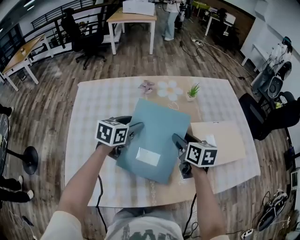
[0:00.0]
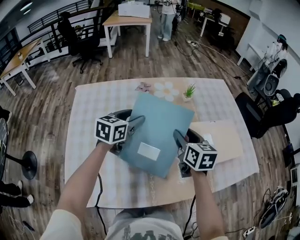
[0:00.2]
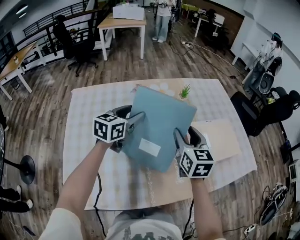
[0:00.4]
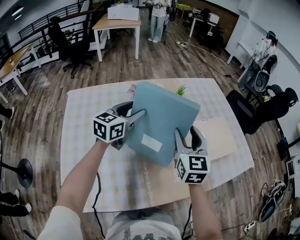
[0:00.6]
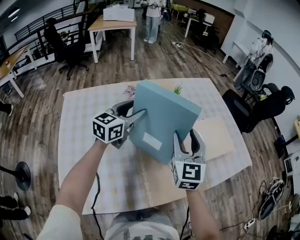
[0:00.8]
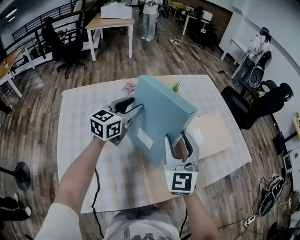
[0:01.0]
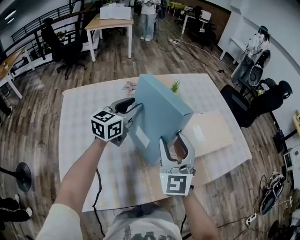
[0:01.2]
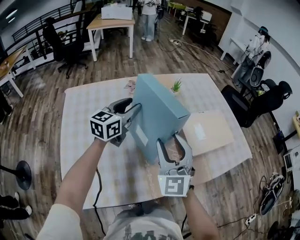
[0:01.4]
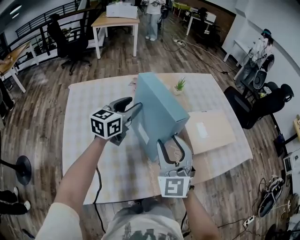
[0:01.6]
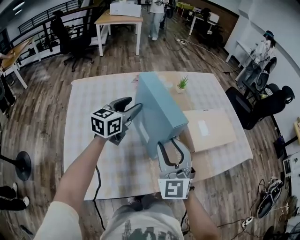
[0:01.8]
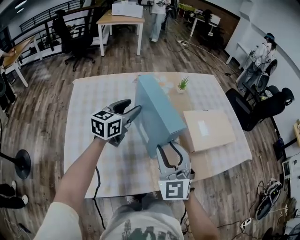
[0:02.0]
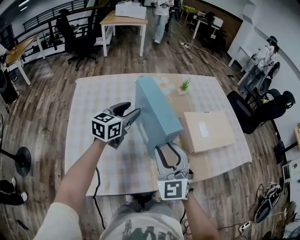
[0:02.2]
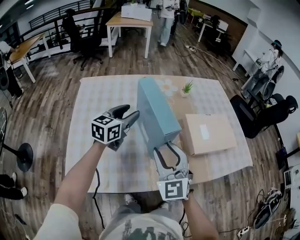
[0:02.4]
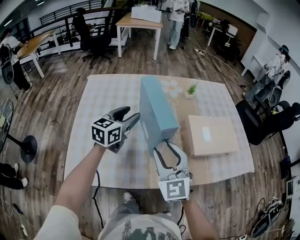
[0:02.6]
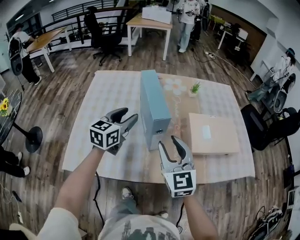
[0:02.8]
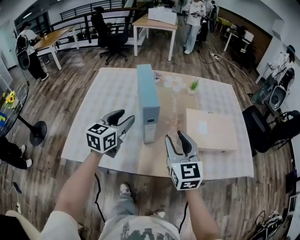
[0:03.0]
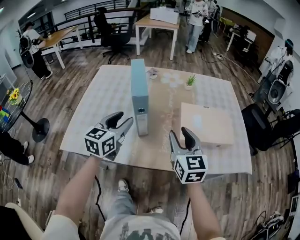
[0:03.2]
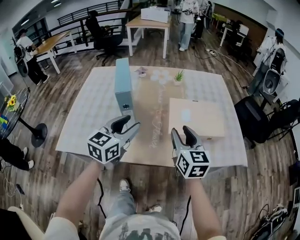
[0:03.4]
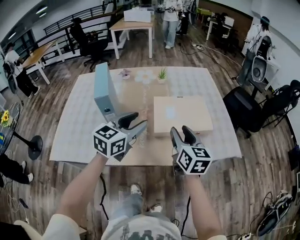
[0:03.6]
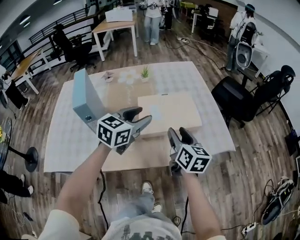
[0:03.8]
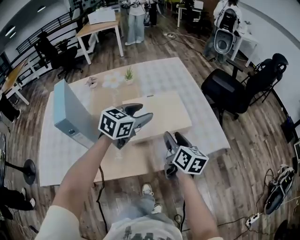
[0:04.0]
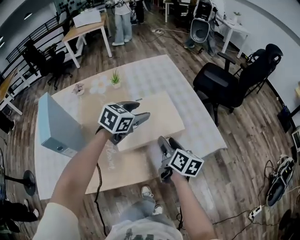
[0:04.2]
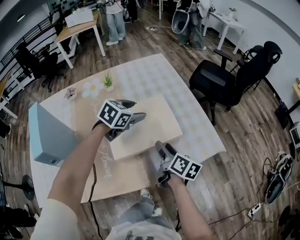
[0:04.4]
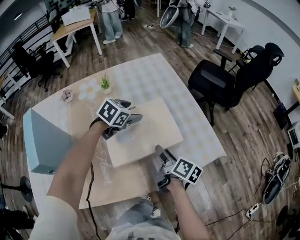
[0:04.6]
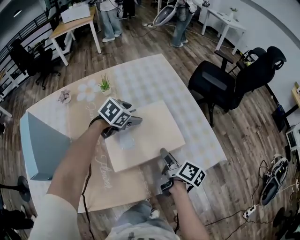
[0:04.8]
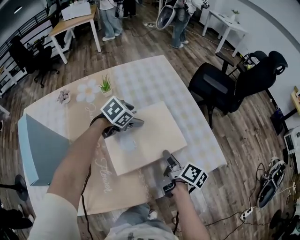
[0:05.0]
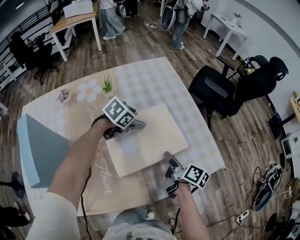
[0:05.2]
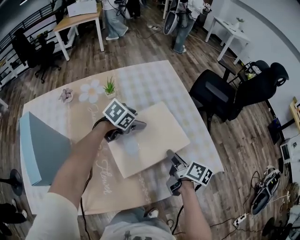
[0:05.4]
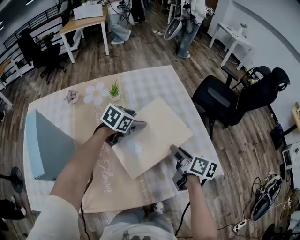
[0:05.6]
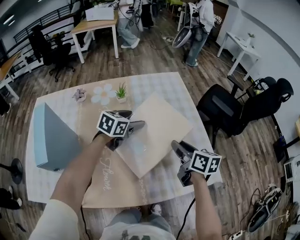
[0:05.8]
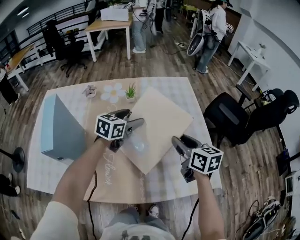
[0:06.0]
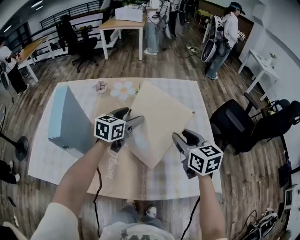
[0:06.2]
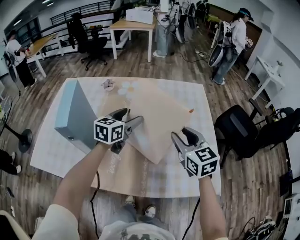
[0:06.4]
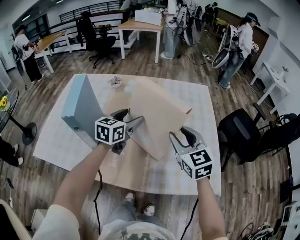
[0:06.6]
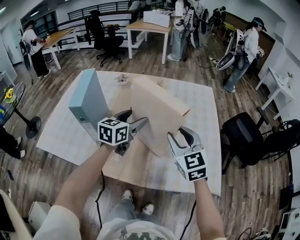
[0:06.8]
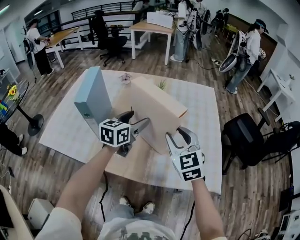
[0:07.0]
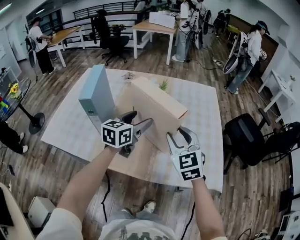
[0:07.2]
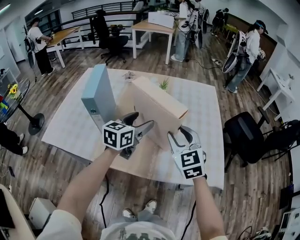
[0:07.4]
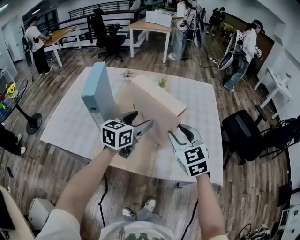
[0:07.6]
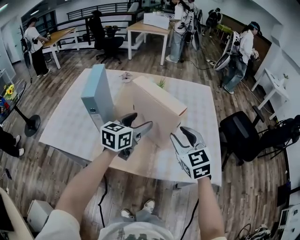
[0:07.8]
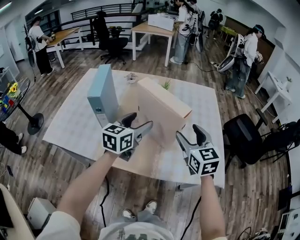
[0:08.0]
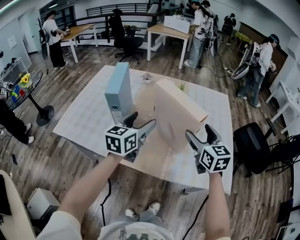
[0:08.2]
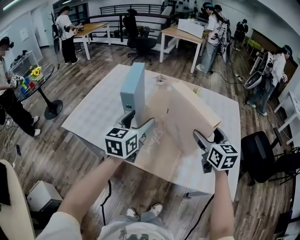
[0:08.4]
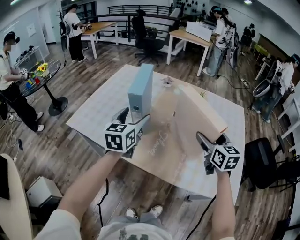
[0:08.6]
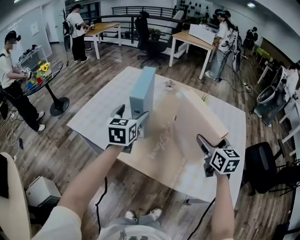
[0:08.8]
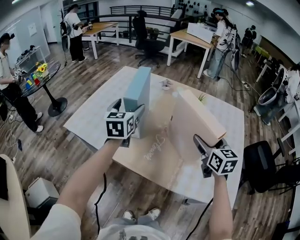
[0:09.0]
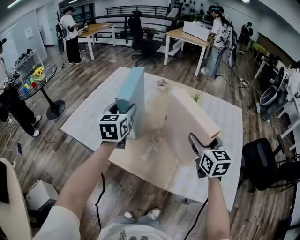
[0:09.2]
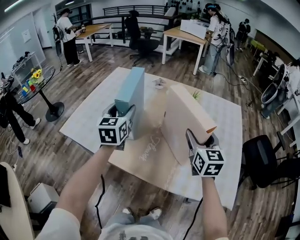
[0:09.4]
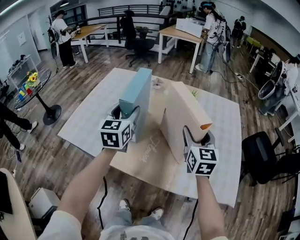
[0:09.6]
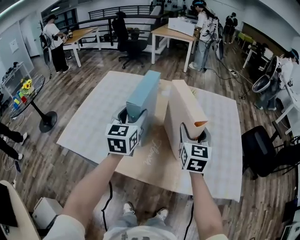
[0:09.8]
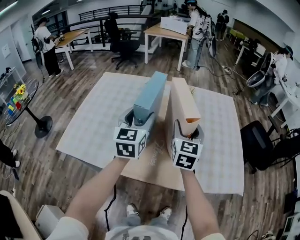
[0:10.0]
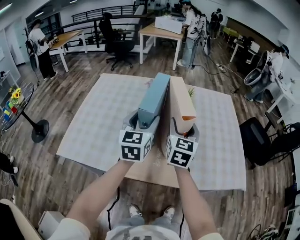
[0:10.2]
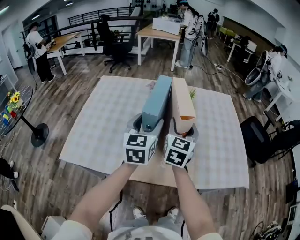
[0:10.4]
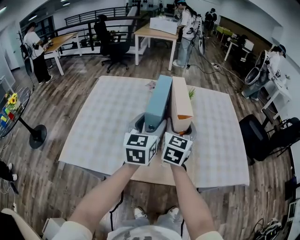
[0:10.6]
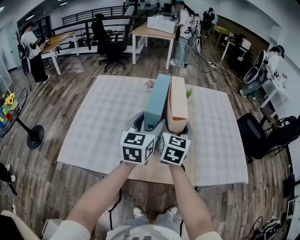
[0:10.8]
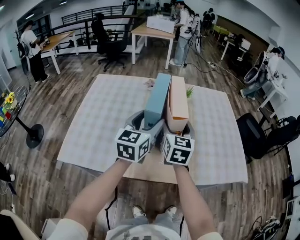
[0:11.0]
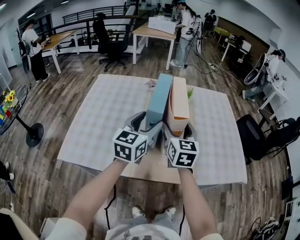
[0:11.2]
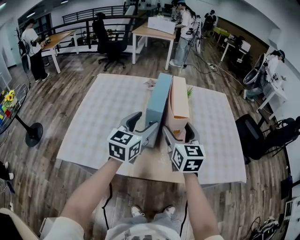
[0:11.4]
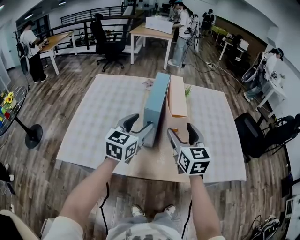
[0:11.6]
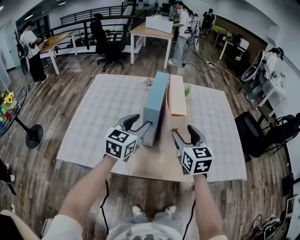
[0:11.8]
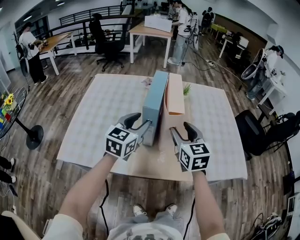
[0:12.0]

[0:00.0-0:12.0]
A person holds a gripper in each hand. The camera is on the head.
0.0 to 1.6 s: The right gripper heads backward and upward, covering some 20 cm, and rolls counterclockwise, seen from behind, by roughly 50 degrees. Meanwhile the left gripper goes roughly 10 cm upward, and rotates some 30 degrees.
1.6 to 3.0 s: The right gripper goes approximately 10 cm to the right, and rotates approximately 30 degrees. Meanwhile the left gripper travels backward by some 15 cm, and changes its angle by approximately 20 degrees.
3.0 to 4.4 s: The right gripper shifts by some 35 cm, and rotates around the line of its fingers by approximately 70 degrees, clockwise from behind. Meanwhile the left gripper changes place by roughly 50 cm, and changes its angle by about 50 degrees.
4.4 to 6.0 s: The left gripper travels downward and back again, some 5 cm each way, and rotates some 30 degrees. Meanwhile the right gripper shifts by some 15 cm, and turns by approximately 40 degrees.
6.0 to 7.6 s: The left gripper travels backward by some 20 cm, and turns by about 20 degrees, while the right gripper moves to the left, backward and upward, some 15 cm, and twists roughly 50 degrees counterclockwise, seen from behind.
7.6 to 9.0 s: The left gripper heads to the left, covering about 25 cm, and turns by approximately 40 degrees; the right gripper travels forward by some 5 cm, rotates about 20 degrees, and opens.
9.0 to 10.4 s: The right gripper shifts by roughly 15 cm, and swivels some 40 degrees. The left gripper moves approximately 5 cm, and rotates roughly 20 degrees.
10.4 to 12.0 s: The right gripper heads backward, covering roughly 5 cm, and turns by approximately 20 degrees.

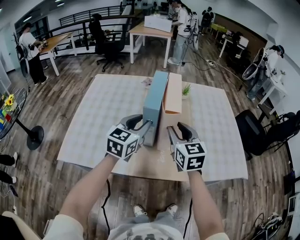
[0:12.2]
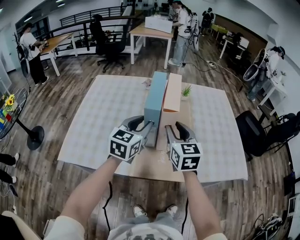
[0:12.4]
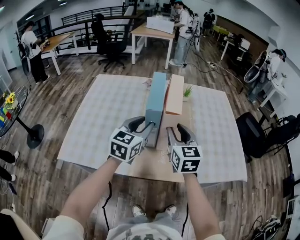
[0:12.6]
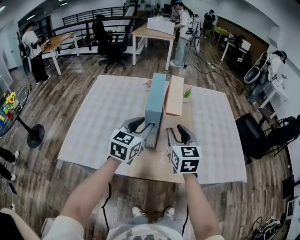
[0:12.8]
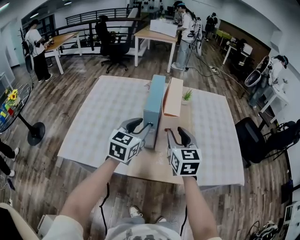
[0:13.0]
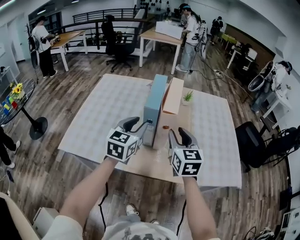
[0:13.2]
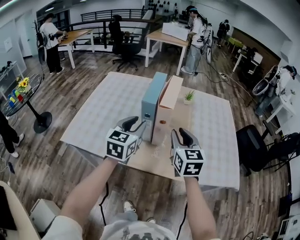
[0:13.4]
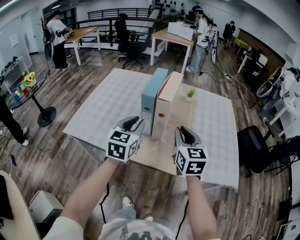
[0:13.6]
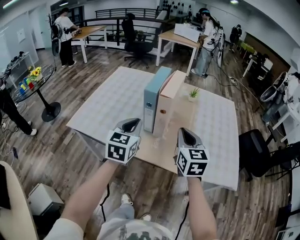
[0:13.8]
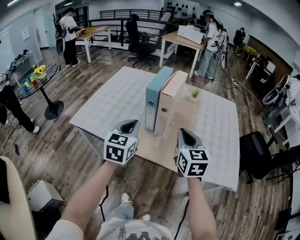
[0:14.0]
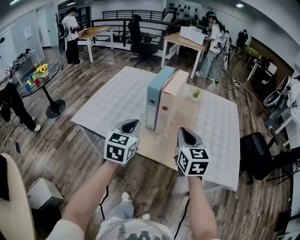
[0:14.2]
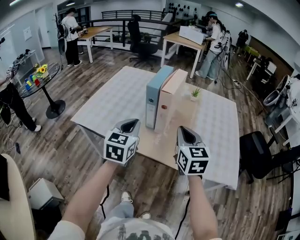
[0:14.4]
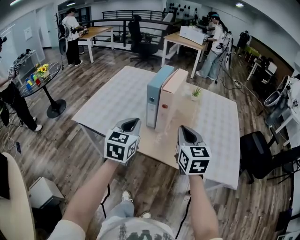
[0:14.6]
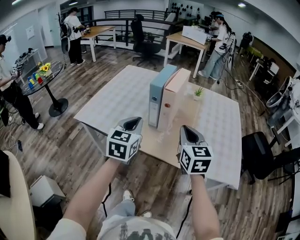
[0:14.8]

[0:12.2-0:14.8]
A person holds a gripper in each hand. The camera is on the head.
12.2 to 13.4 s: The left gripper goes approximately 5 cm backward. Meanwhile the right gripper ends up approximately 5 cm from where it was.
13.4 to 14.8 s: Both grippers travel together backward, approximately 10 cm. The left gripper closes up.

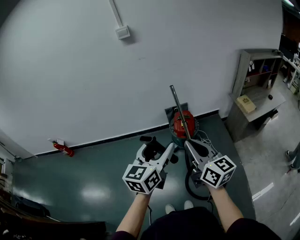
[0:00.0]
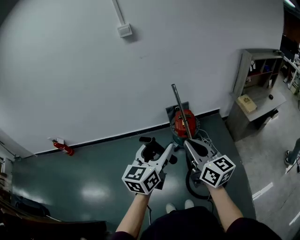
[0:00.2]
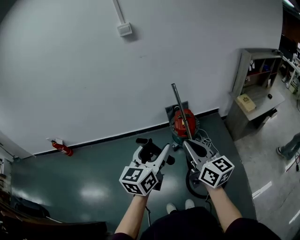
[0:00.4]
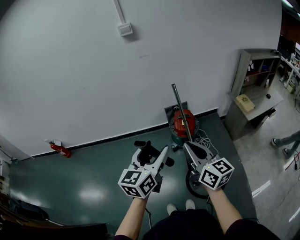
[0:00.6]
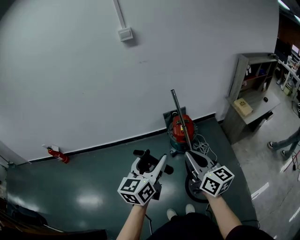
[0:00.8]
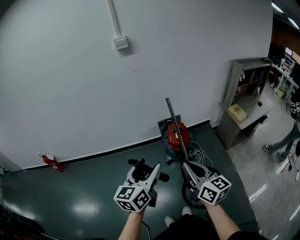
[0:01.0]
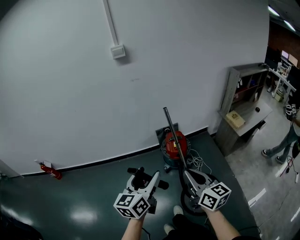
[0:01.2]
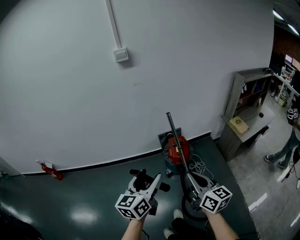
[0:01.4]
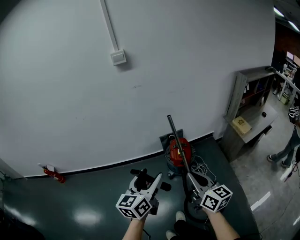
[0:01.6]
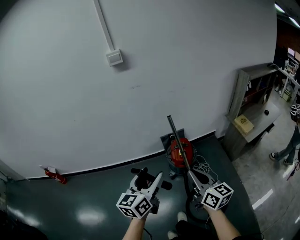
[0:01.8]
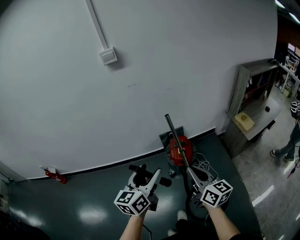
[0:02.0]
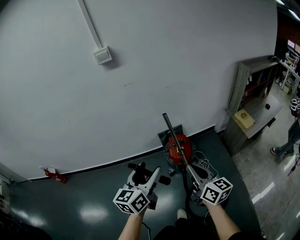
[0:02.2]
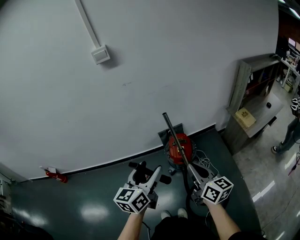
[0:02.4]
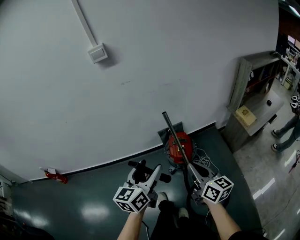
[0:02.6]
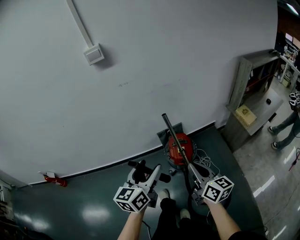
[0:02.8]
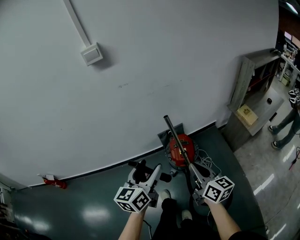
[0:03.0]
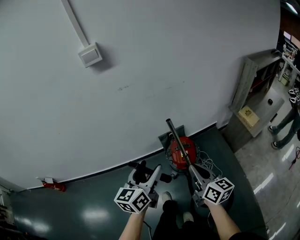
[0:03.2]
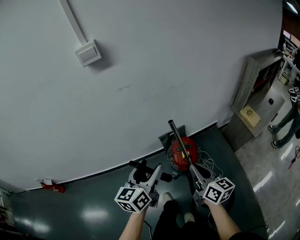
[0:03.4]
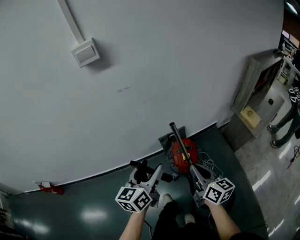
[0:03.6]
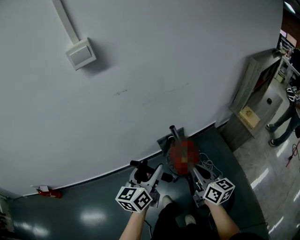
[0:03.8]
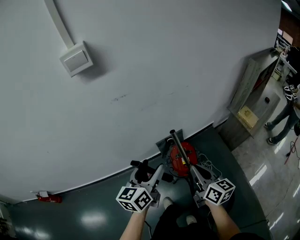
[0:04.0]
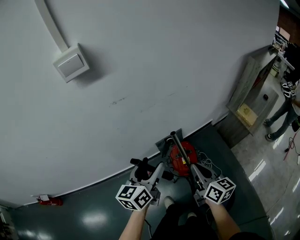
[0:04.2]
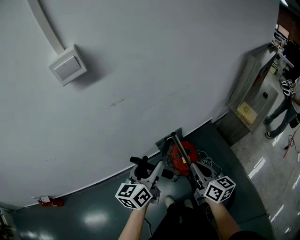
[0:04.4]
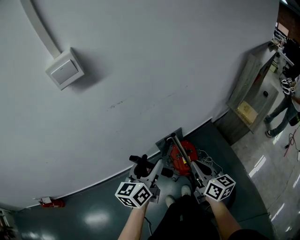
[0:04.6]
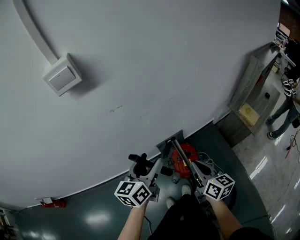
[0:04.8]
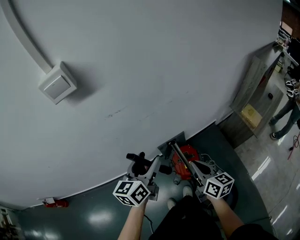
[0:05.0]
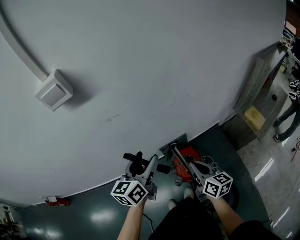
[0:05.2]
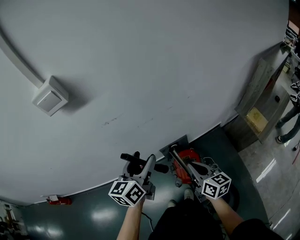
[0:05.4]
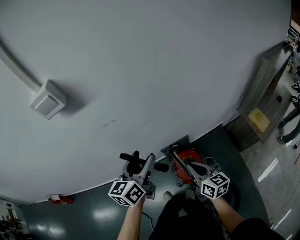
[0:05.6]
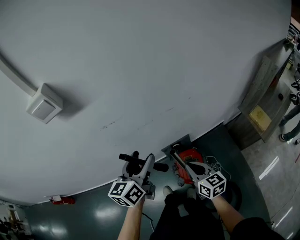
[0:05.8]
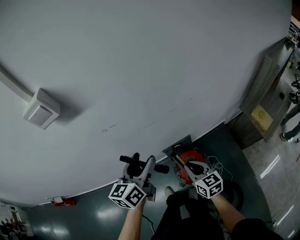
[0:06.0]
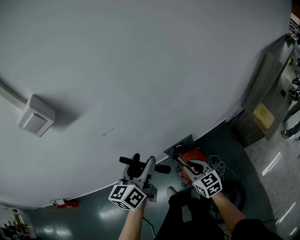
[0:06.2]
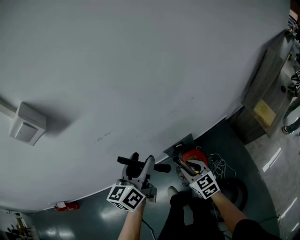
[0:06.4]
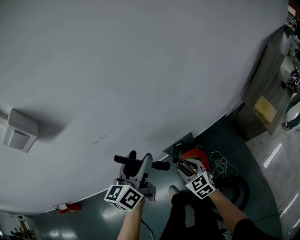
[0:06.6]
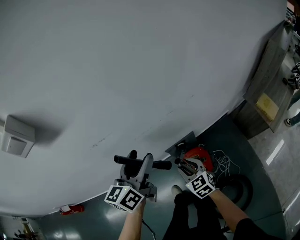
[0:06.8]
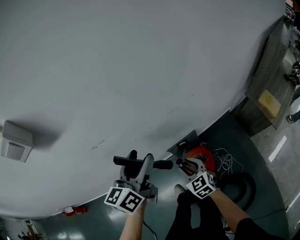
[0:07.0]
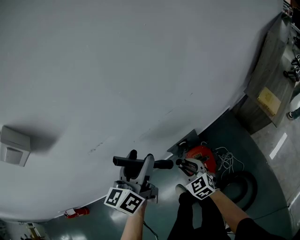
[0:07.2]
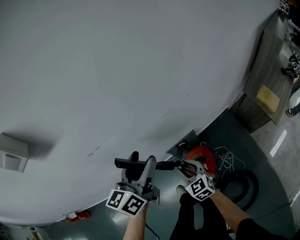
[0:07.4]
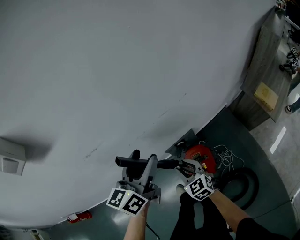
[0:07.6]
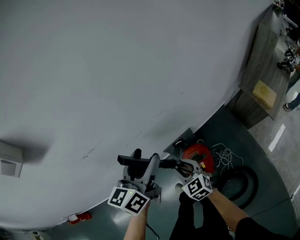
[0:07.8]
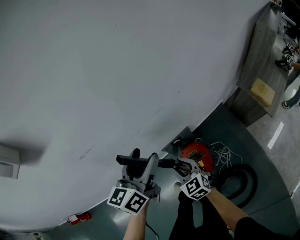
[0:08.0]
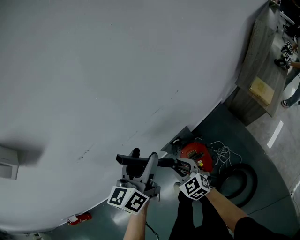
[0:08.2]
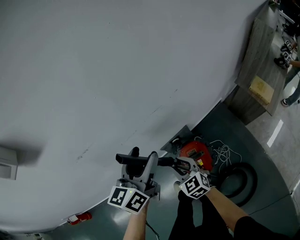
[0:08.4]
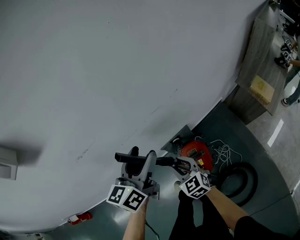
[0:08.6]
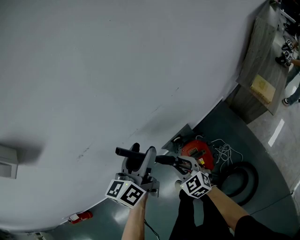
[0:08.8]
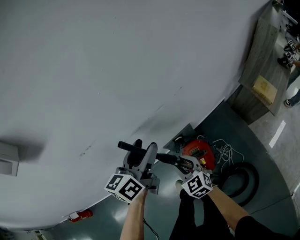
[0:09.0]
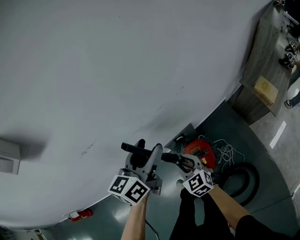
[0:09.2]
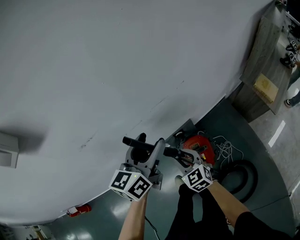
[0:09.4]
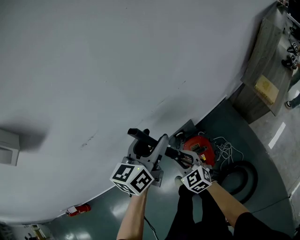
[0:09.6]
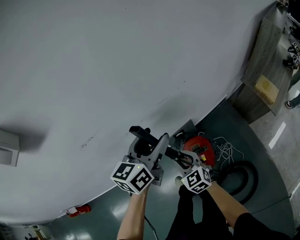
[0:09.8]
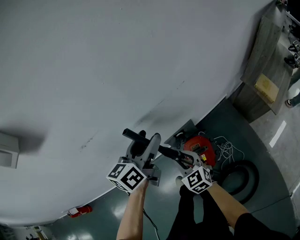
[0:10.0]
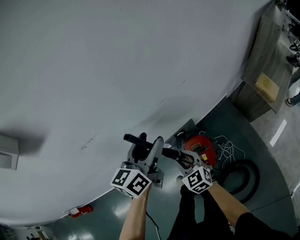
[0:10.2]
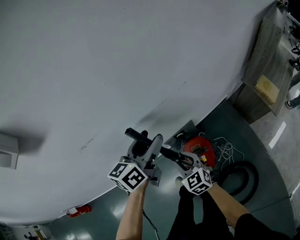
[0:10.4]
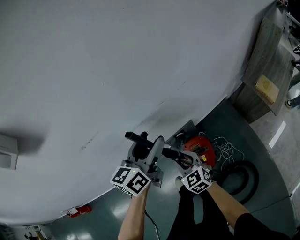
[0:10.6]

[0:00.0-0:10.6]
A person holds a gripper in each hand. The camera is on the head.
0.0 to 1.6 s: The right gripper is displaced forward by approximately 10 cm, while the left gripper heads forward and to the left, covering about 10 cm.
1.6 to 3.0 s: The grippers both shift forward by roughly 20 cm.
3.0 to 4.6 s: Both grippers move forward, roughly 20 cm.
4.6 to 6.0 s: The left gripper moves forward, some 10 cm; the right gripper heads forward and downward, covering approximately 15 cm, and rotates roughly 30 degrees.
6.0 to 7.6 s: The left gripper travels forward by roughly 5 cm. Meanwhile the right gripper travels downward and forward by about 10 cm, and opens.
7.6 to 9.0 s: The grippers move only a little.
9.0 to 10.6 s: The grippers make only small movements.
